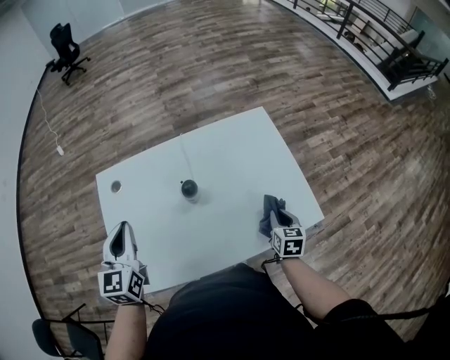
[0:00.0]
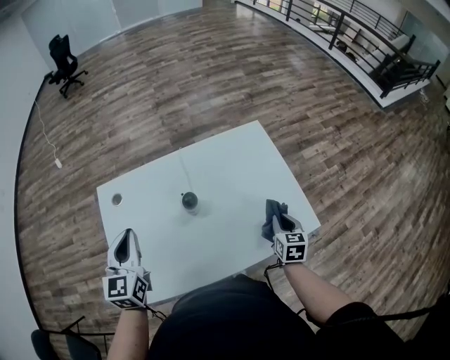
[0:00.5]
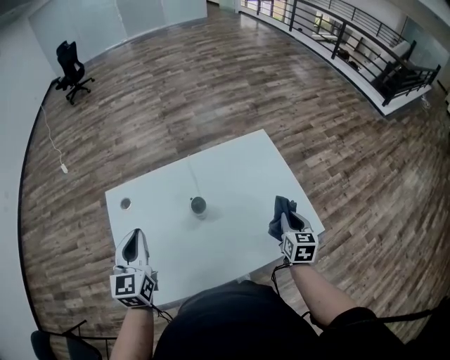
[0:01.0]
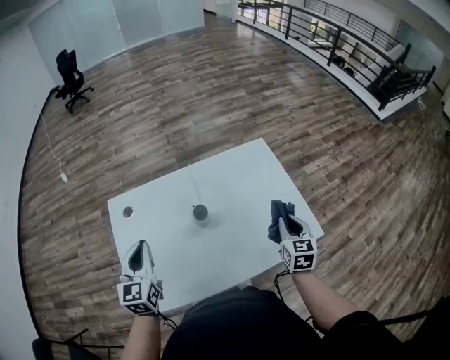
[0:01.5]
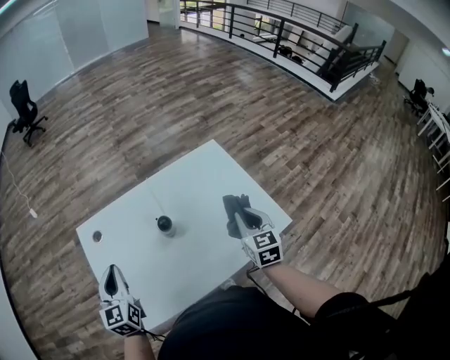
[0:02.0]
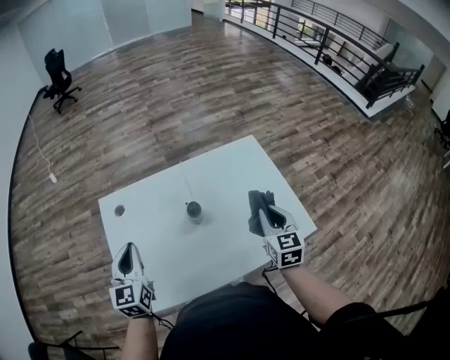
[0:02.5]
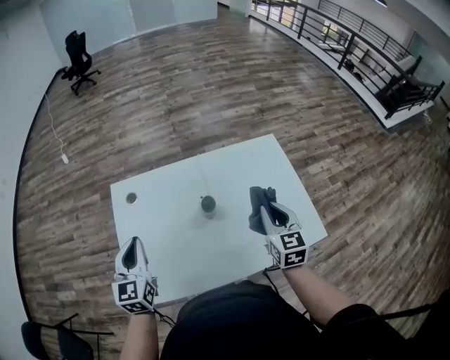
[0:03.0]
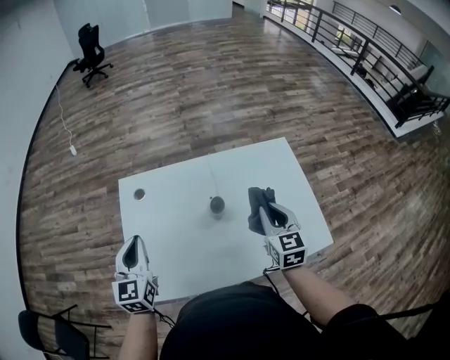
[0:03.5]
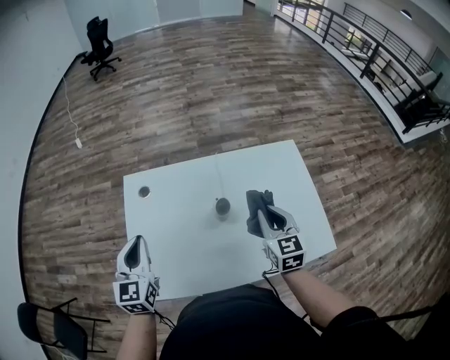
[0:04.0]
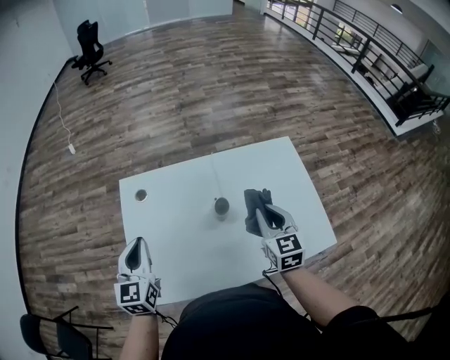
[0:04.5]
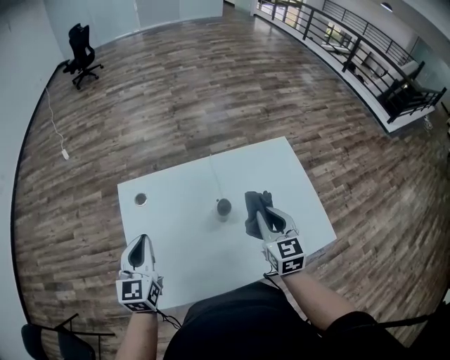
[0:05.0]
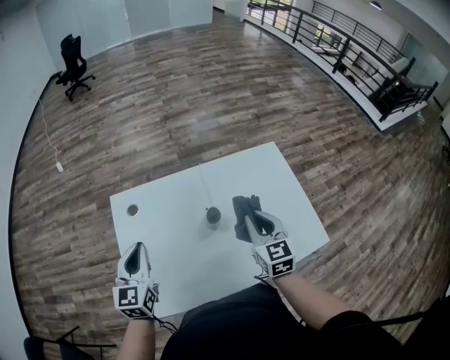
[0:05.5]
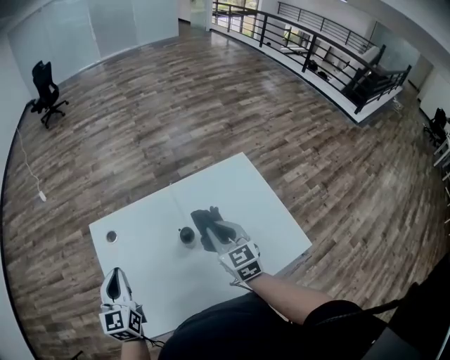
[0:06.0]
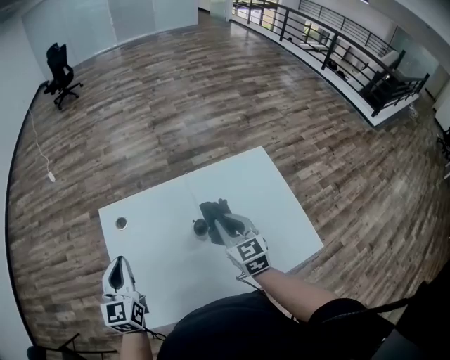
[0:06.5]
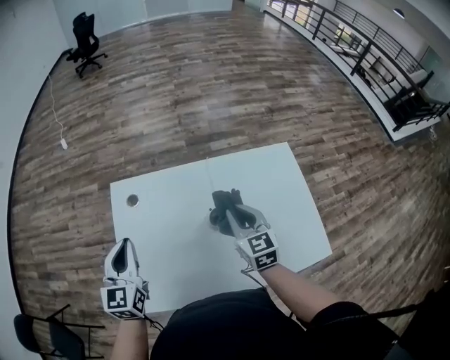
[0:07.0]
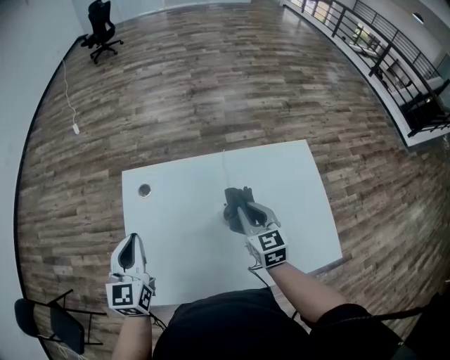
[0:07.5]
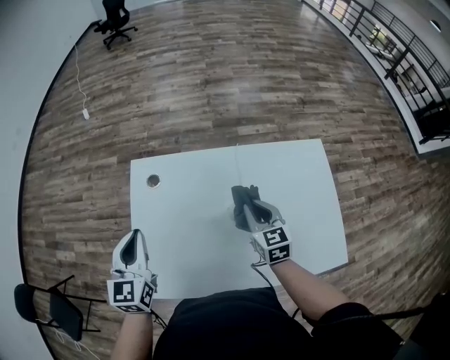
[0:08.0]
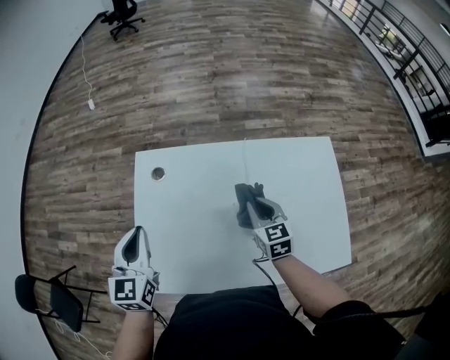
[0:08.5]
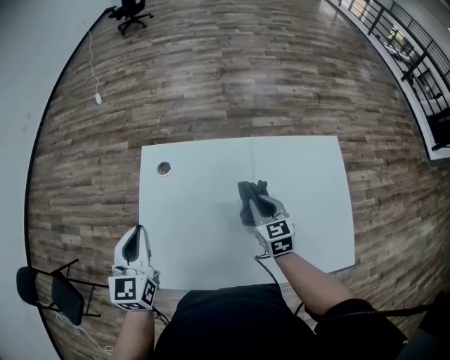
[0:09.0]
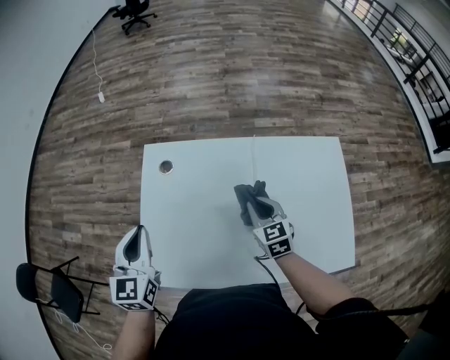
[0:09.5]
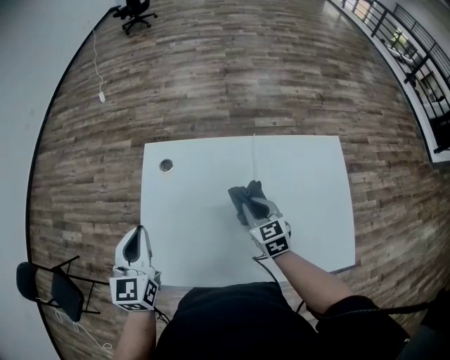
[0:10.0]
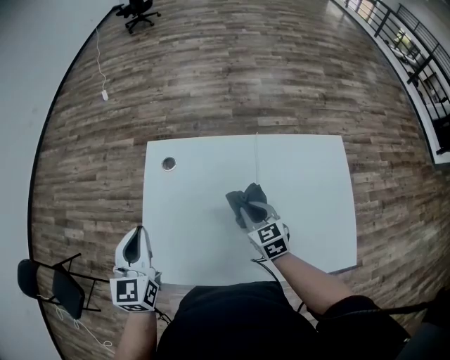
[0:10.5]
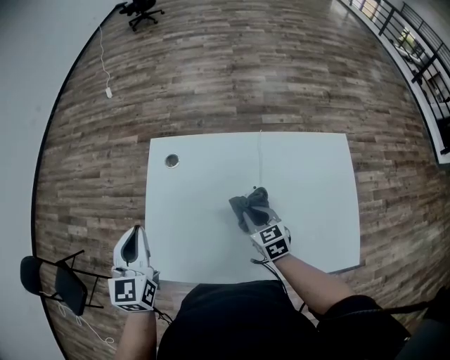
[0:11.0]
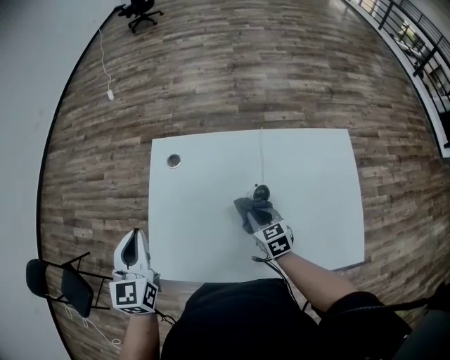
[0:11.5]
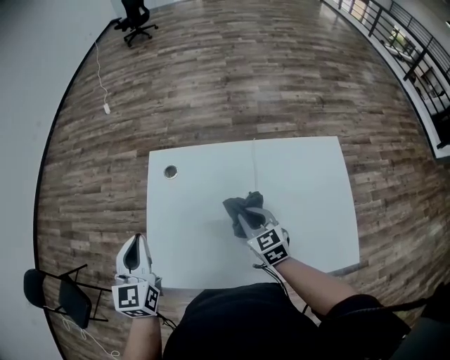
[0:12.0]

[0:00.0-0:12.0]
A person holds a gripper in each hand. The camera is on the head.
0:00.0 to 0:02.0: The right gripper is displaced upward by roughly 15 cm.
0:02.0 to 0:04.0: The right gripper heads to the left and forward, covering about 10 cm.
0:04.0 to 0:06.0: The right gripper changes place by approximately 5 cm.
0:06.0 to 0:08.0: The right gripper moves downward, some 5 cm.
0:08.0 to 0:10.0: The right gripper ends up some 5 cm from where it was.

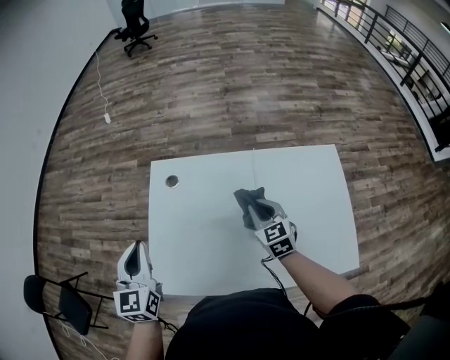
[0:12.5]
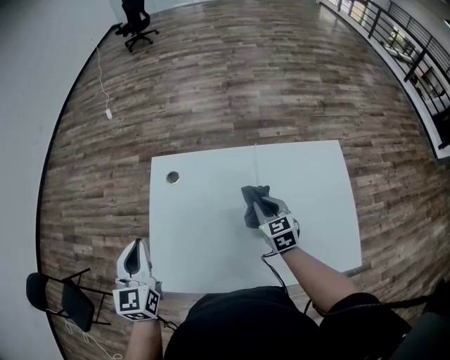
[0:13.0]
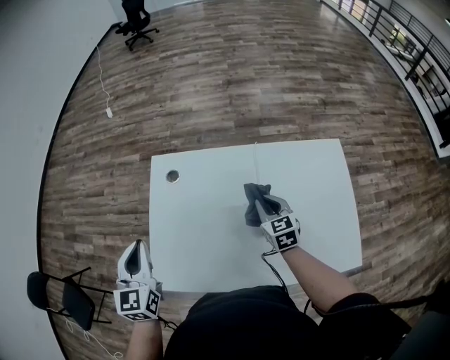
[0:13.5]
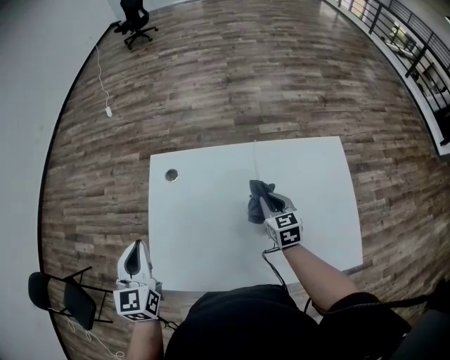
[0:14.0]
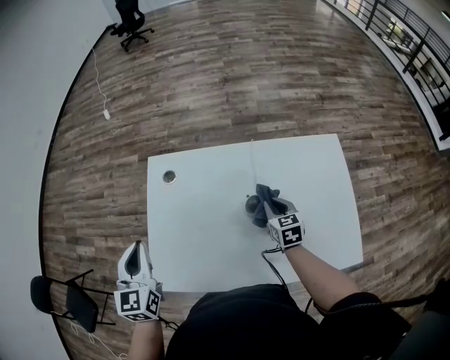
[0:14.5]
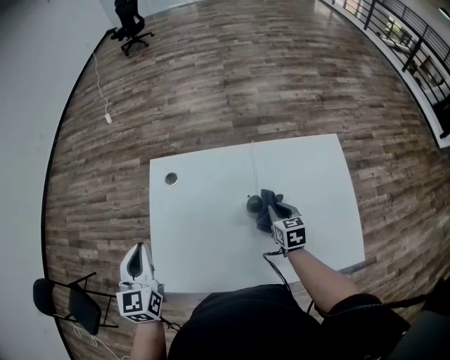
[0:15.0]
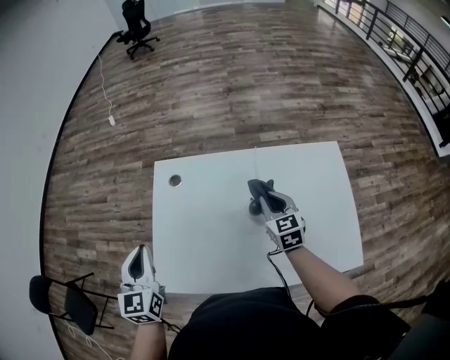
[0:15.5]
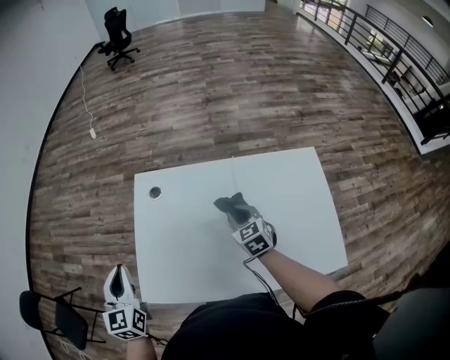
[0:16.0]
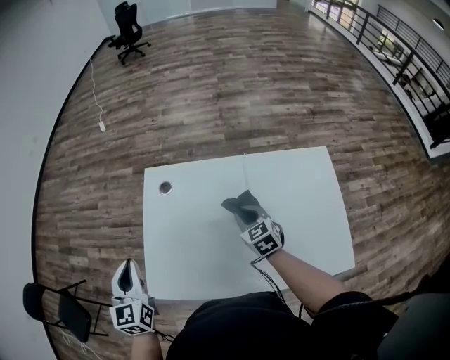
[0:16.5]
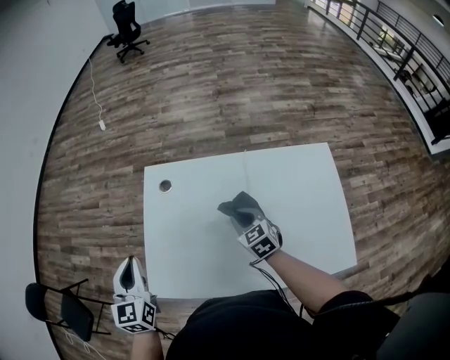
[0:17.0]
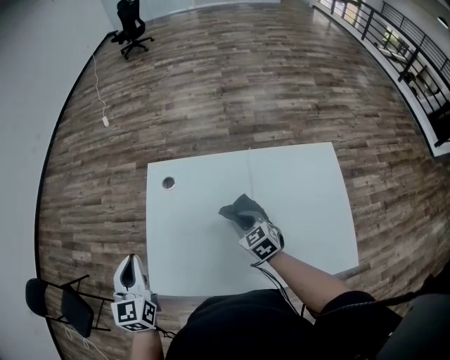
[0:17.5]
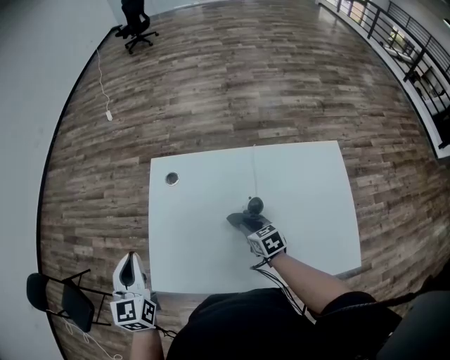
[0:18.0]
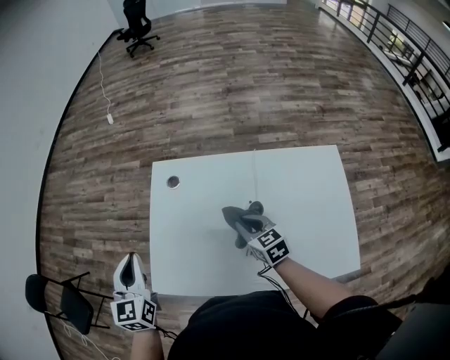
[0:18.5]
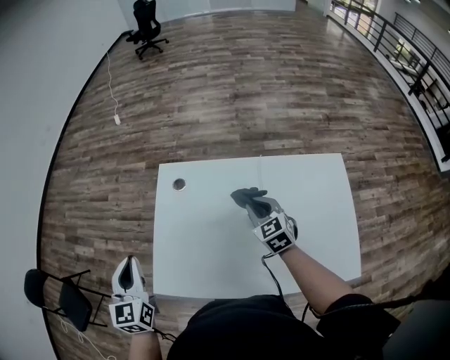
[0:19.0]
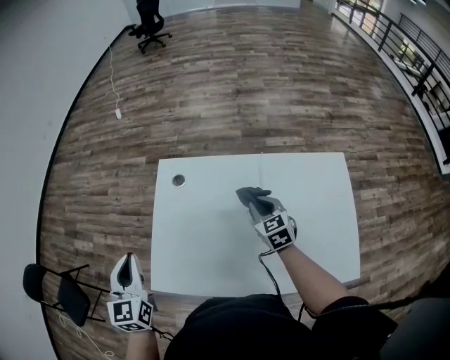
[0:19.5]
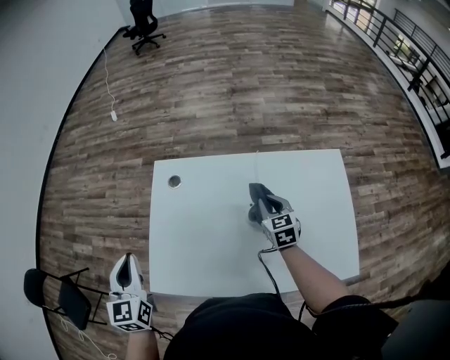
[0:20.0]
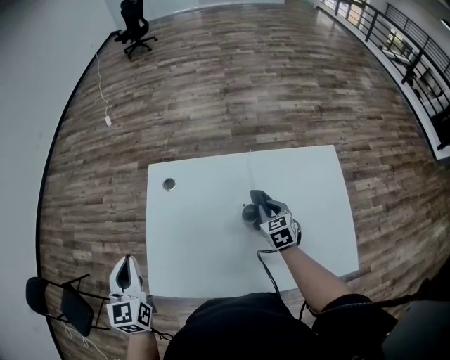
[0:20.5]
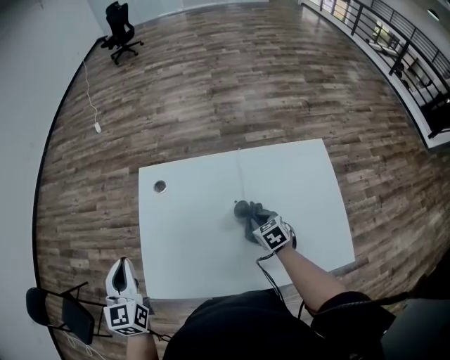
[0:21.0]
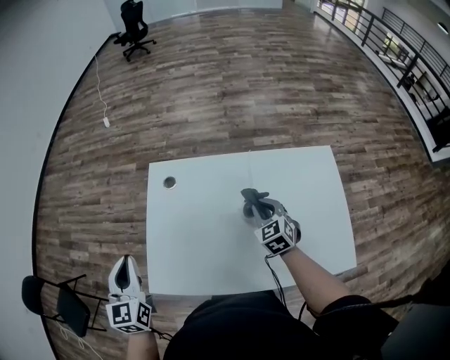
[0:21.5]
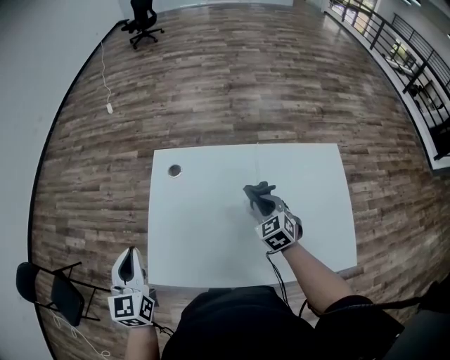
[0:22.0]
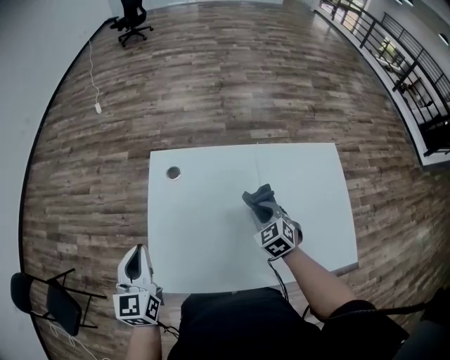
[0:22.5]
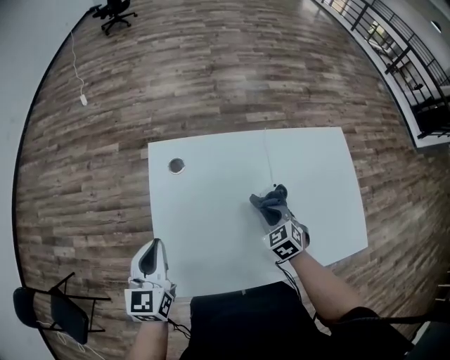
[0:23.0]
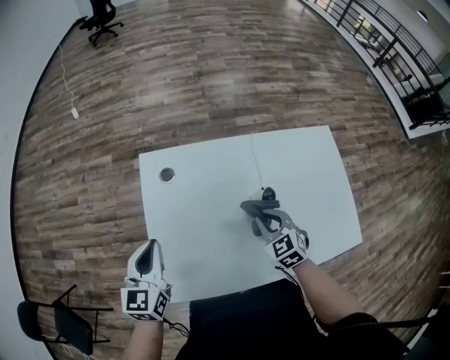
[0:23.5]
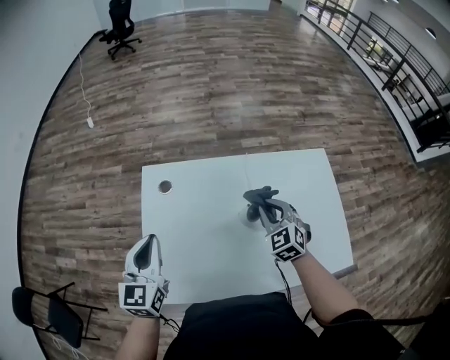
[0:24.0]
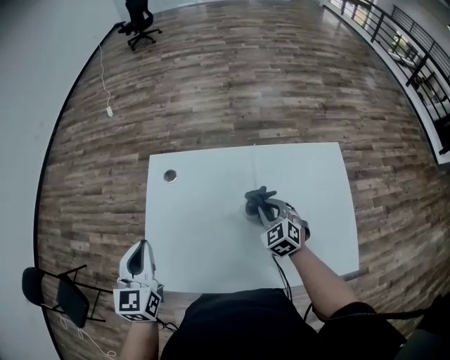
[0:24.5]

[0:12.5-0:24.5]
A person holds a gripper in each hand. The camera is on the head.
0:12.5 to 0:14.5: The right gripper shifts roughly 10 cm downward and to the right.
0:14.5 to 0:16.5: The right gripper goes about 10 cm to the left, and rotates about 20 degrees.
0:16.5 to 0:18.5: The right gripper travels downward and back again, about 10 cm each way.
0:18.5 to 0:20.5: The right gripper shifts about 10 cm to the right, and changes its angle by roughly 20 degrees.
0:20.5 to 0:22.5: The right gripper shifts about 5 cm to the left, travels upward and back again, roughly 5 cm each way, and rotates about 20 degrees.
0:22.5 to 0:24.5: The right gripper swings up and down, roughly 10 cm each way, with 2 reversals.

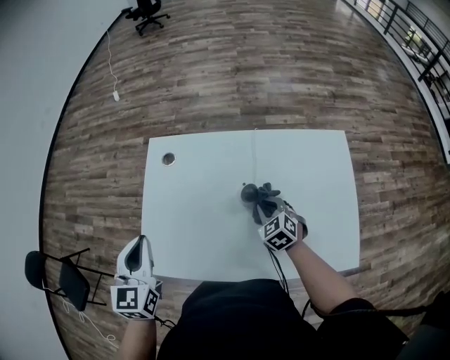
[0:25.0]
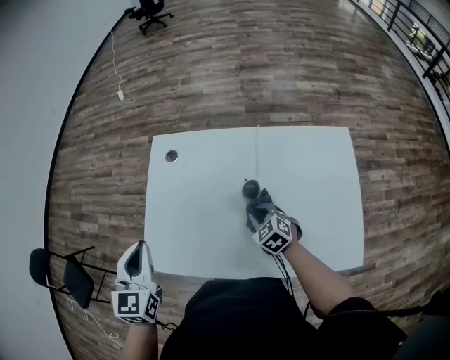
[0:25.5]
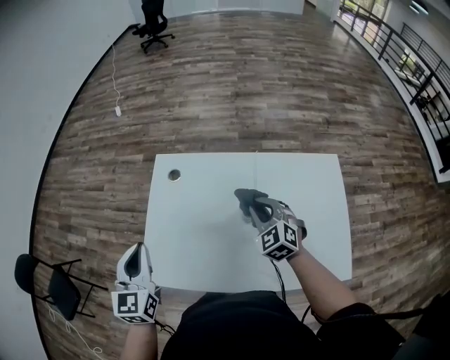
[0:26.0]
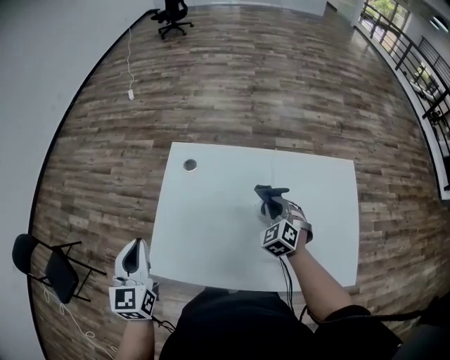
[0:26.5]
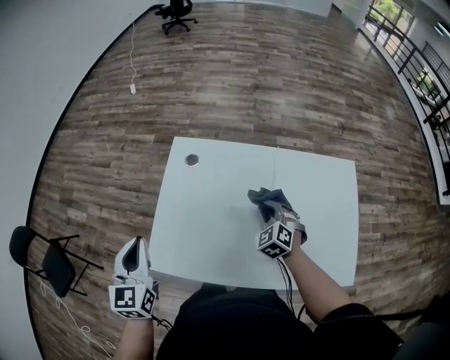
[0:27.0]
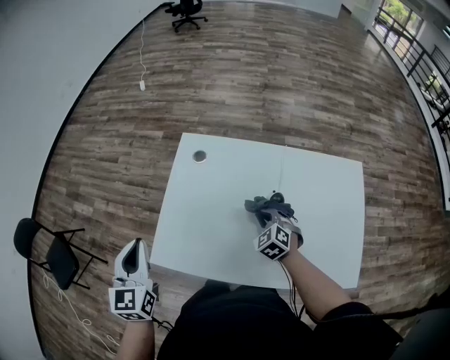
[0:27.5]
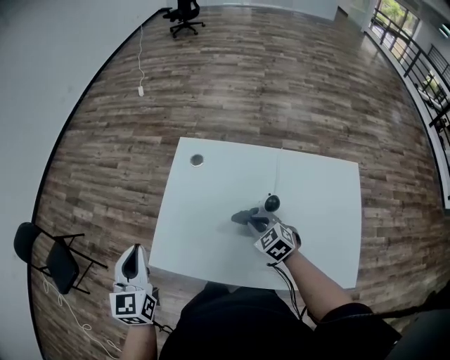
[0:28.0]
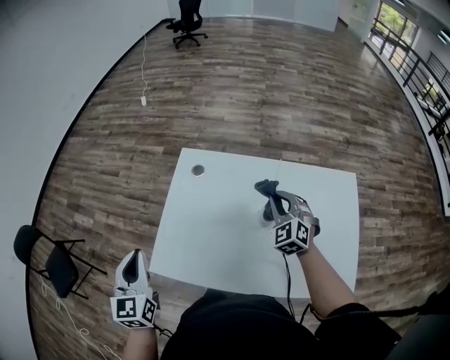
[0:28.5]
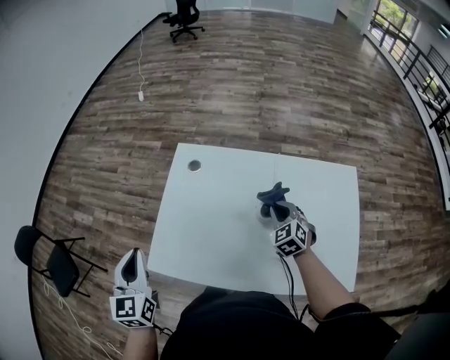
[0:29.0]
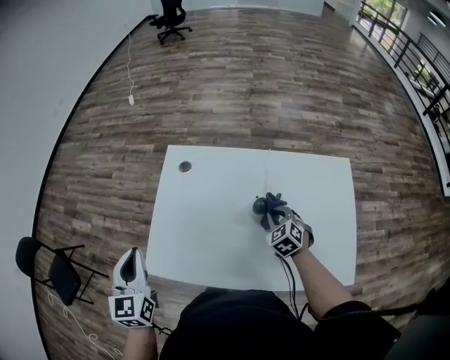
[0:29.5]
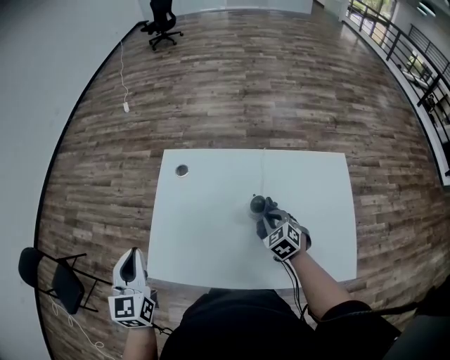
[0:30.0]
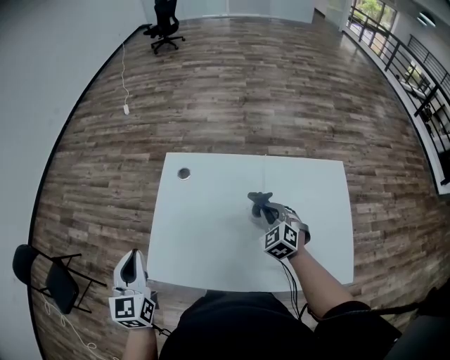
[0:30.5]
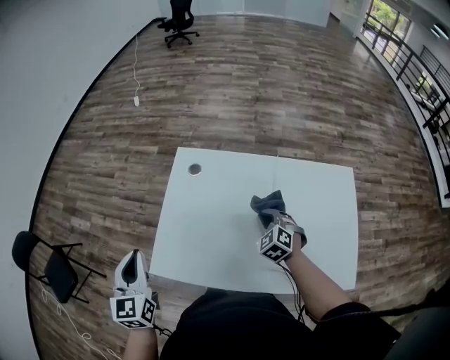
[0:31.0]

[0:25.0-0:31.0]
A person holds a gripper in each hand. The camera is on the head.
0:25.0 to 0:27.0: The left gripper goes some 5 cm to the left. Meanwhile the right gripper goes upward and returns, roughly 10 cm each way.
0:27.0 to 0:29.0: The right gripper swings up and down, about 15 cm each way, with 2 reversals.
0:29.0 to 0:31.0: The right gripper goes some 5 cm to the left.
